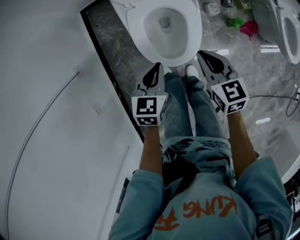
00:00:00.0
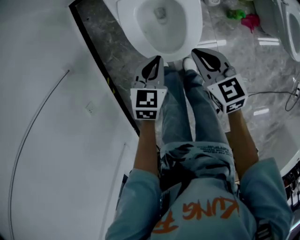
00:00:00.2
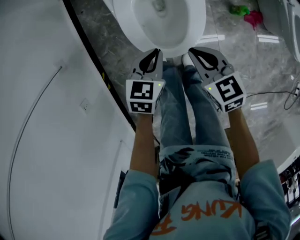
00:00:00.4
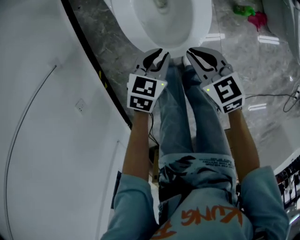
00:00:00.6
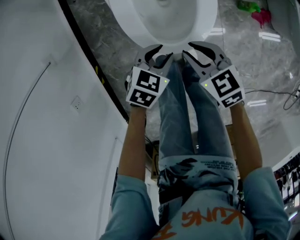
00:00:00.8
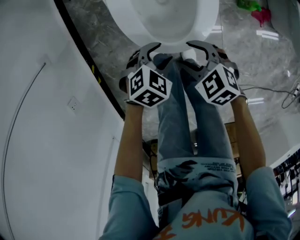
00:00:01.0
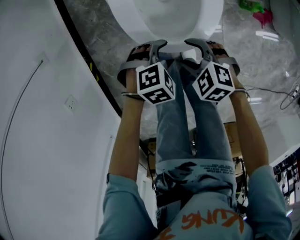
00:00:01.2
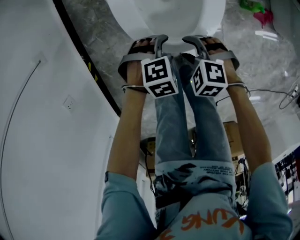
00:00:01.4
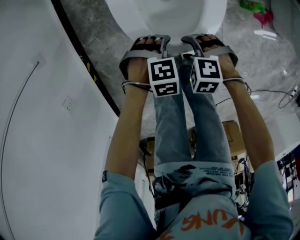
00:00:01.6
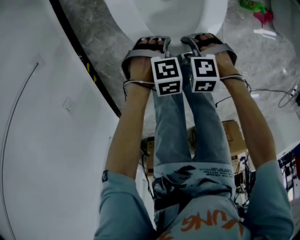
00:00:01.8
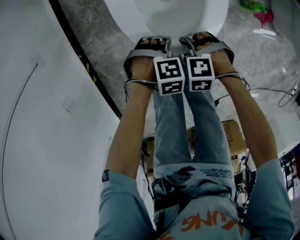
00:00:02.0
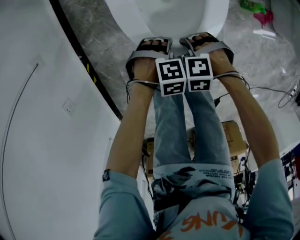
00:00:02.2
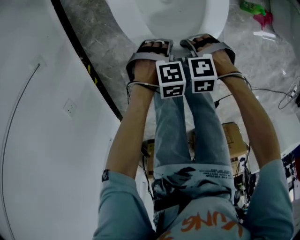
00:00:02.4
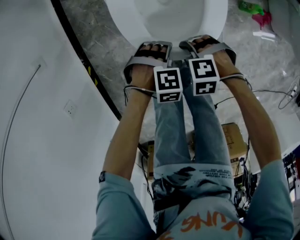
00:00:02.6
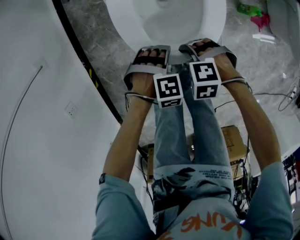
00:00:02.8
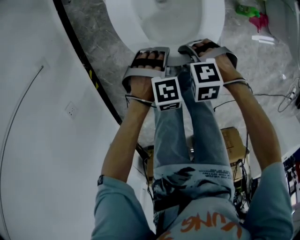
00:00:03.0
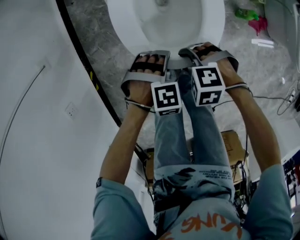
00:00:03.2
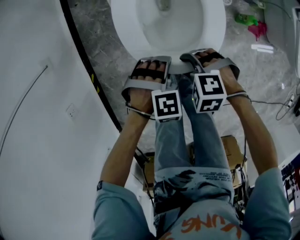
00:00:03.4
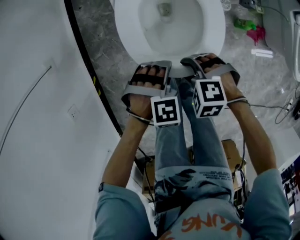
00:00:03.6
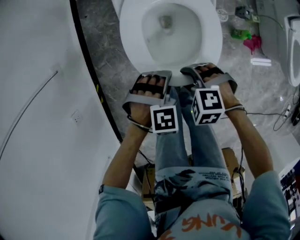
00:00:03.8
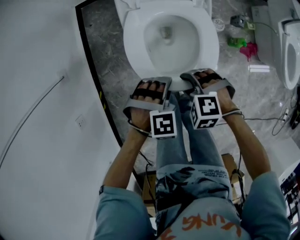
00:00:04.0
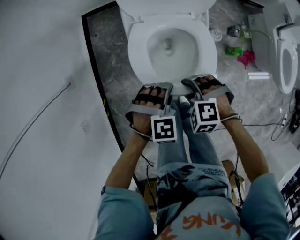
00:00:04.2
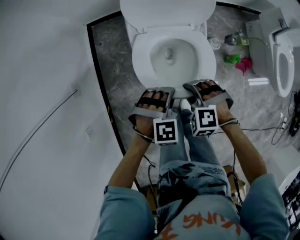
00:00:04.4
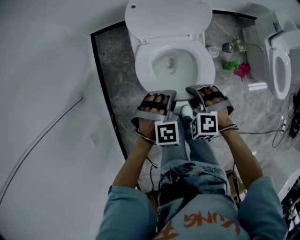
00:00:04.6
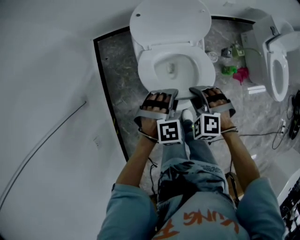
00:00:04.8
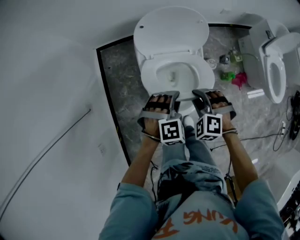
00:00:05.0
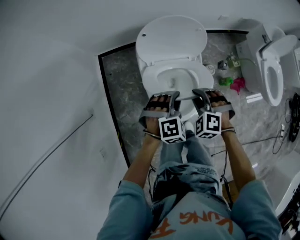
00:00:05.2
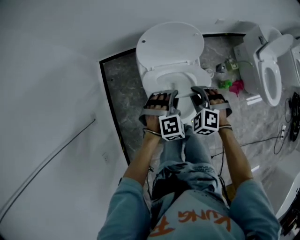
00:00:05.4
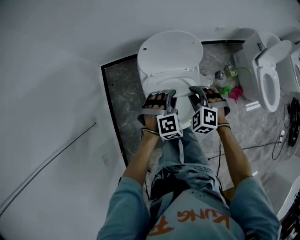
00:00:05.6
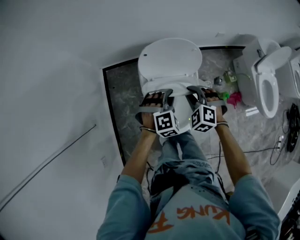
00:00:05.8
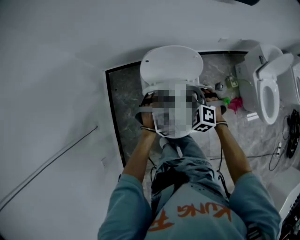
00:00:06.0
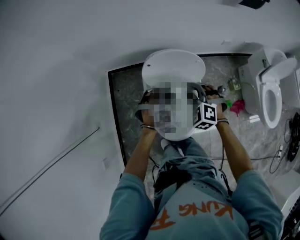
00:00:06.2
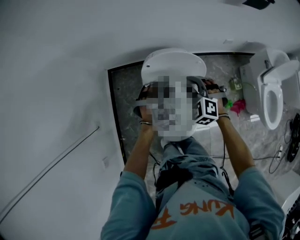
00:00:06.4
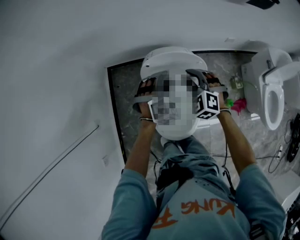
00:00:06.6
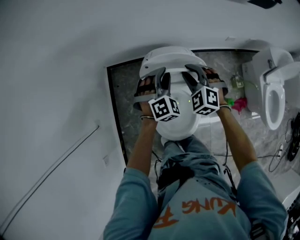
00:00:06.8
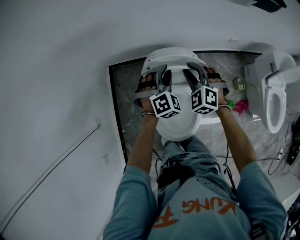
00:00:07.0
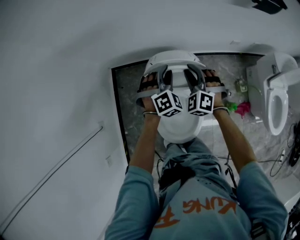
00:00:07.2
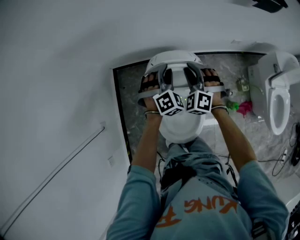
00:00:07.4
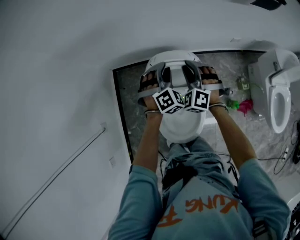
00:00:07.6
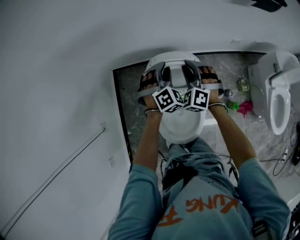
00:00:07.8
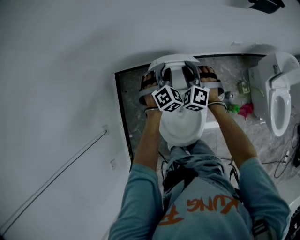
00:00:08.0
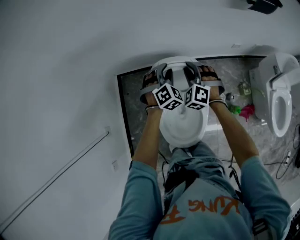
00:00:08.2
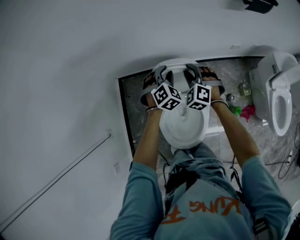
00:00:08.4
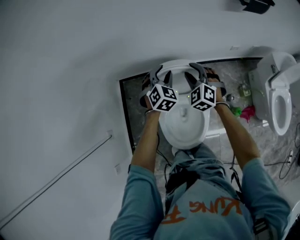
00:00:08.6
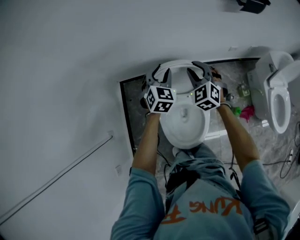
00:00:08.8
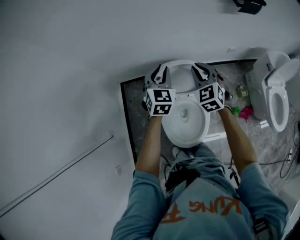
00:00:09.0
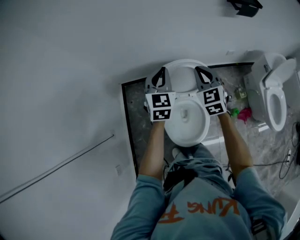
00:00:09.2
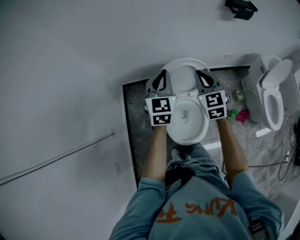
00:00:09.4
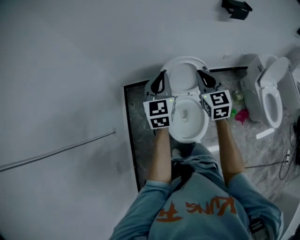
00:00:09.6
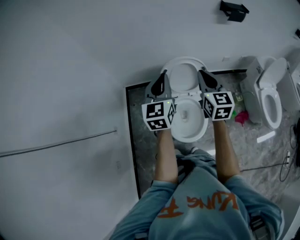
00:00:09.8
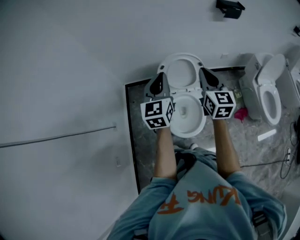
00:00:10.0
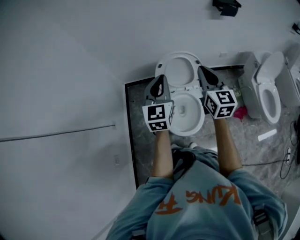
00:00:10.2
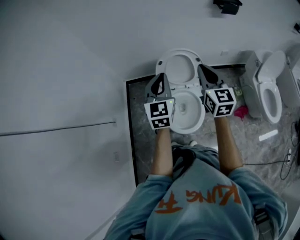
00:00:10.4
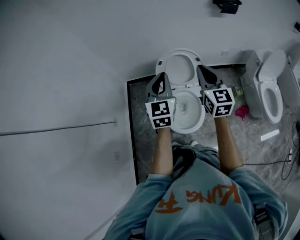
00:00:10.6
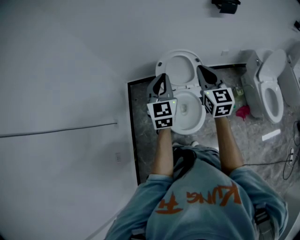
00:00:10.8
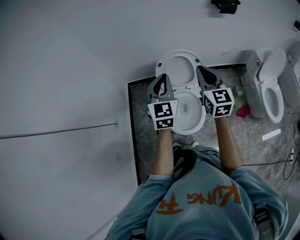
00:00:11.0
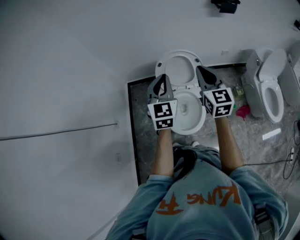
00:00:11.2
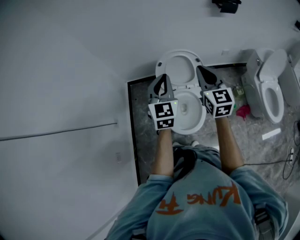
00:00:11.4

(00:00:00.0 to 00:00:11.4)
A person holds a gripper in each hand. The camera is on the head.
00:00:00.0 - 00:00:01.4: Both grippers travel together downward, some 30 cm. The right gripper points its fingers roughly 30 degrees further downward, and opens its fingers, while the left gripper changes its angle by some 70 degrees, and opens its fingers.
00:00:02.8 - 00:00:04.2: The two grippers go some 20 cm upward. The left gripper closes its fingers.
00:00:04.2 - 00:00:05.6: The right gripper goes approximately 25 cm upward and forward, and swivels about 30 degrees, while the left gripper shifts about 25 cm forward and upward, and swivels roughly 30 degrees.
00:00:05.6 - 00:00:07.2: The two grippers go roughly 25 cm forward.
00:00:07.2 - 00:00:08.6: The left gripper rotates approximately 20 degrees.
00:00:08.6 - 00:00:10.0: Both grippers move backward and upward, roughly 35 cm. The right gripper twists roughly 50 degrees clockwise, seen from behind, and closes up, while the left gripper angles its fingers upward, by about 30 degrees, and closes up.
00:00:10.0 - 00:00:11.4: The left gripper moves roughly 5 cm.

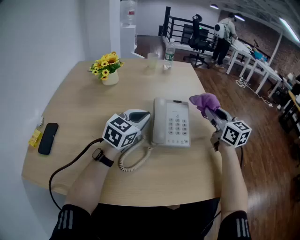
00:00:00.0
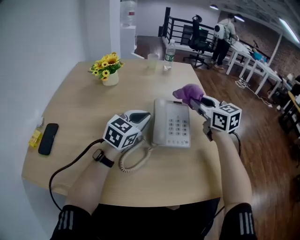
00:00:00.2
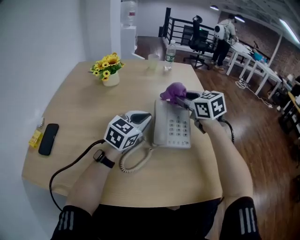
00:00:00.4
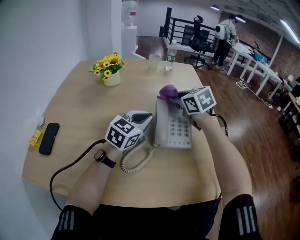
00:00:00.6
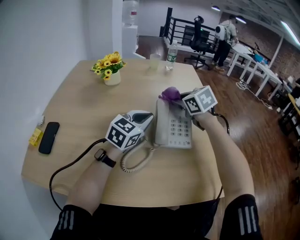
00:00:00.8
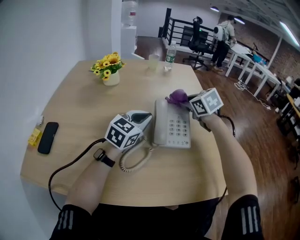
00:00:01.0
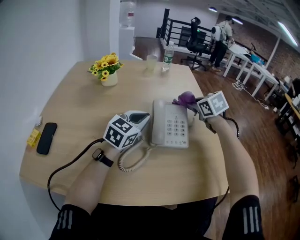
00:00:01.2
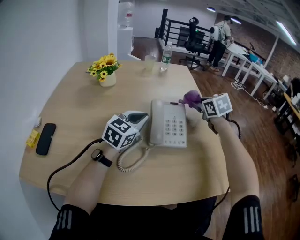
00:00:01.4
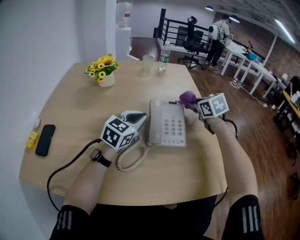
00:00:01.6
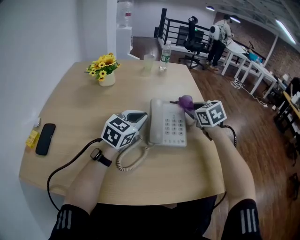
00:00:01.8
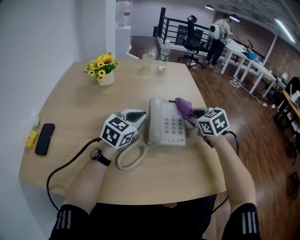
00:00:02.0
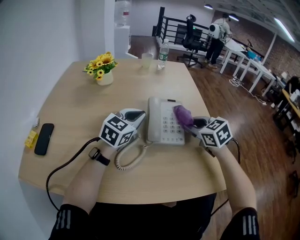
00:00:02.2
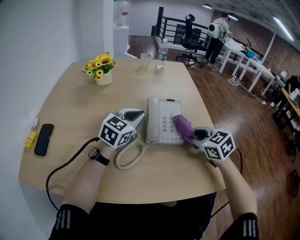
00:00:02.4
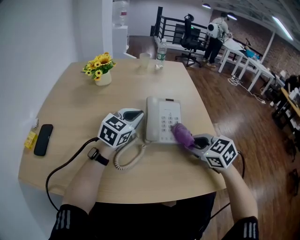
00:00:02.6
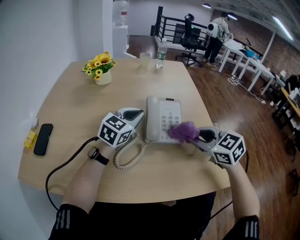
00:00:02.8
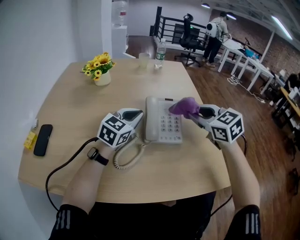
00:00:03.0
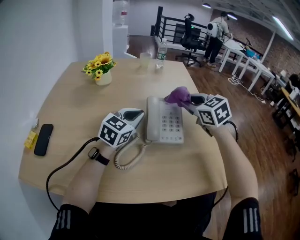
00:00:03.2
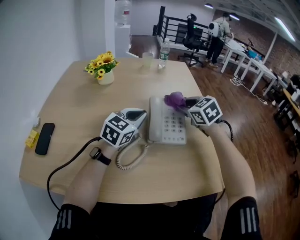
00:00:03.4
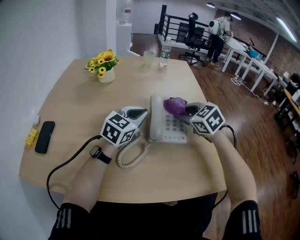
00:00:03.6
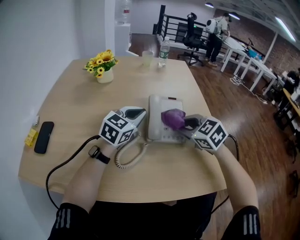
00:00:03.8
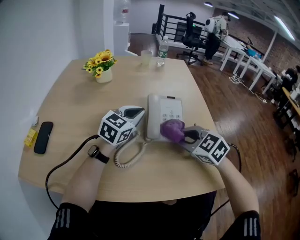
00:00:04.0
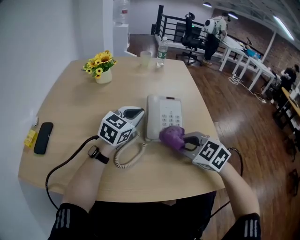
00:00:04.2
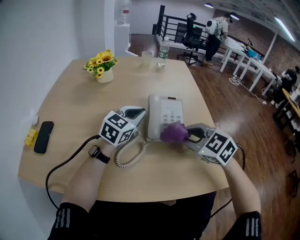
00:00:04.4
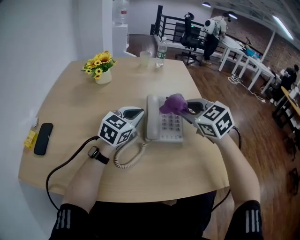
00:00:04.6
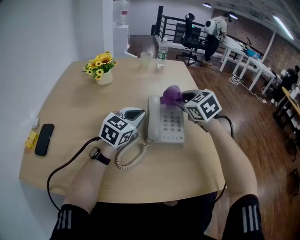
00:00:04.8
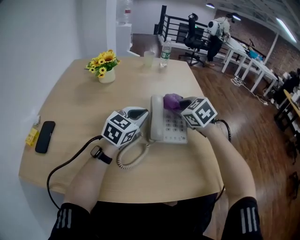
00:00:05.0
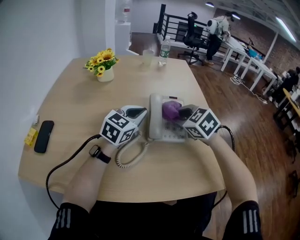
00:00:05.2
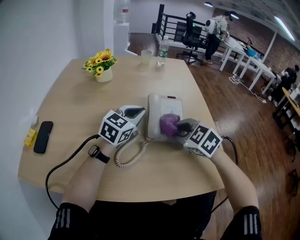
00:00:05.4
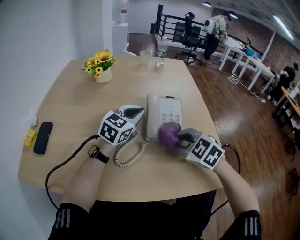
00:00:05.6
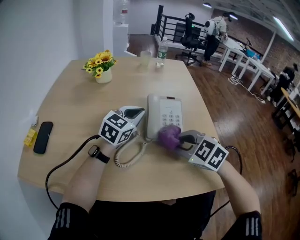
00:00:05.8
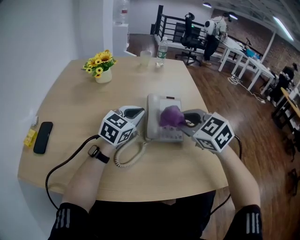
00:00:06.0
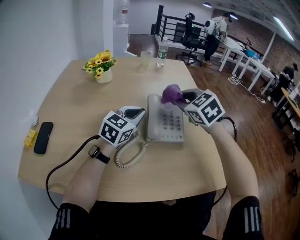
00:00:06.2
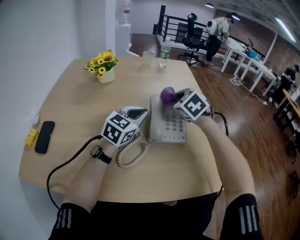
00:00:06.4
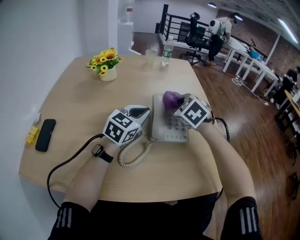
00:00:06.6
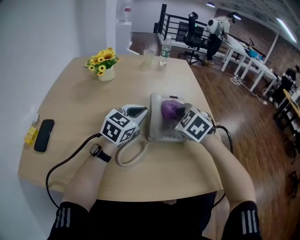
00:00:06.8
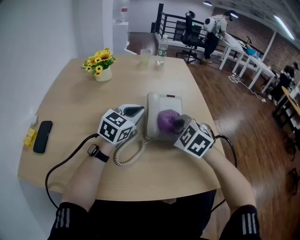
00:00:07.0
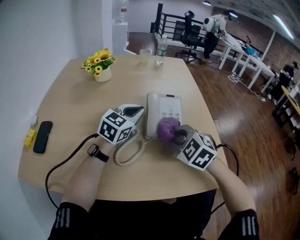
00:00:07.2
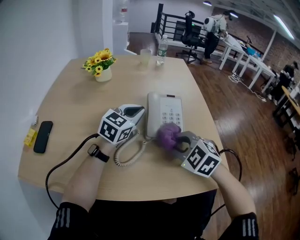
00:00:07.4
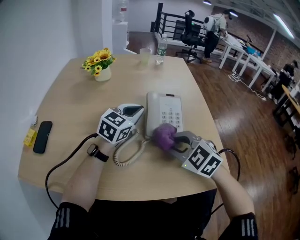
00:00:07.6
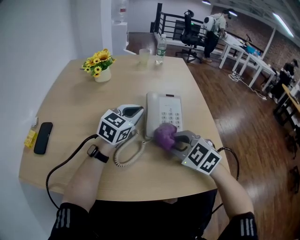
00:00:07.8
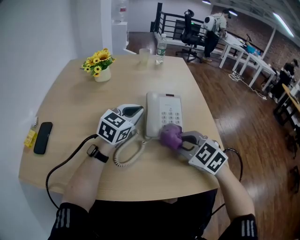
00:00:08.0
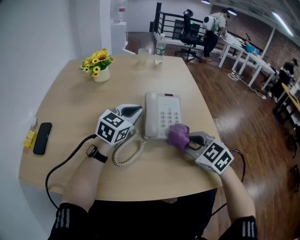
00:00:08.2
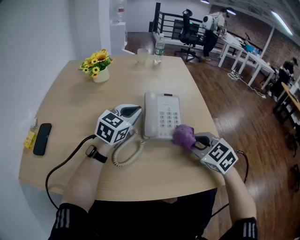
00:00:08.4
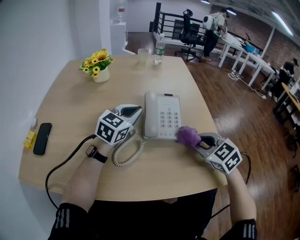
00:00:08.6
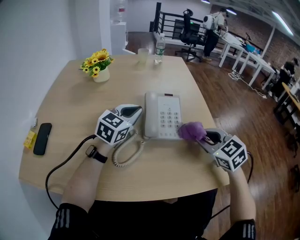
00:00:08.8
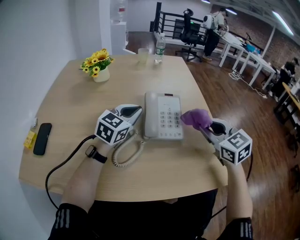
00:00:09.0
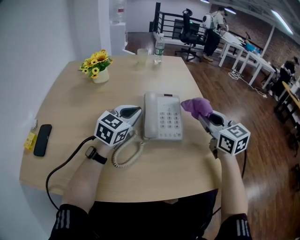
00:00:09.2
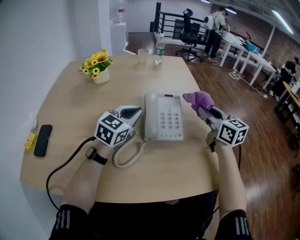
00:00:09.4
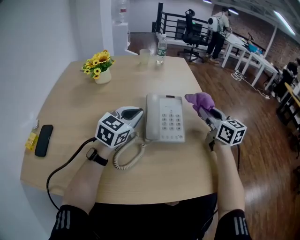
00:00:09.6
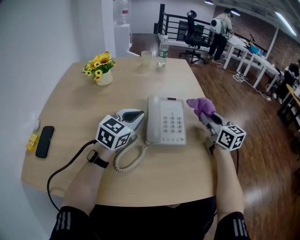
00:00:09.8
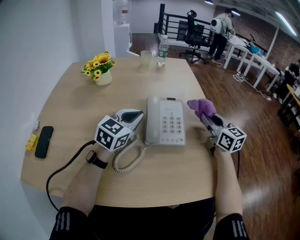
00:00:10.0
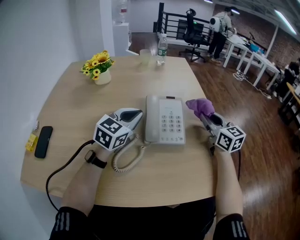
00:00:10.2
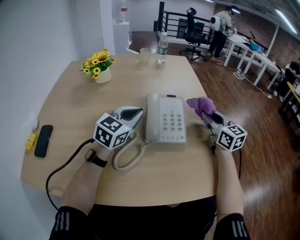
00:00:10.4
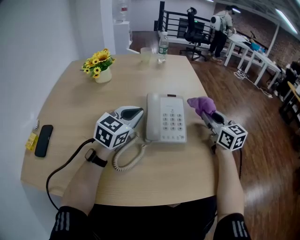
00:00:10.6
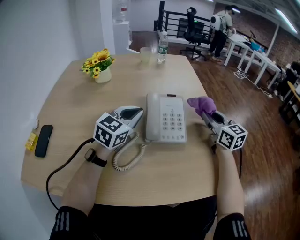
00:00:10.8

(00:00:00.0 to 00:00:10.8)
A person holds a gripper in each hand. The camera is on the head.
00:00:00.0 - 00:00:01.6: The right gripper is displaced forward by roughly 5 cm, reaches approximately 15 cm to the left, then returns, and angles its fingers downward, by approximately 30 degrees.
00:00:01.6 - 00:00:03.0: The right gripper is displaced backward by about 10 cm.
00:00:03.0 - 00:00:04.6: The right gripper goes forward and backward, some 20 cm each way, reversing 2 times.
00:00:04.6 - 00:00:06.2: The right gripper goes forward and backward, about 20 cm each way, reversing 2 times.
00:00:06.2 - 00:00:07.8: The right gripper travels backward and downward by some 20 cm.
00:00:07.8 - 00:00:09.2: The right gripper travels to the right, upward and forward by roughly 20 cm, and turns by some 40 degrees.
00:00:09.2 - 00:00:10.8: The right gripper goes about 5 cm forward.

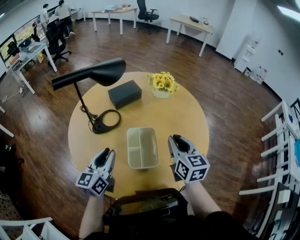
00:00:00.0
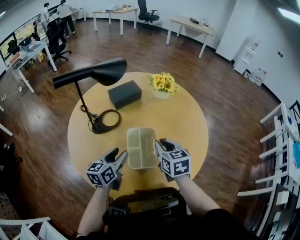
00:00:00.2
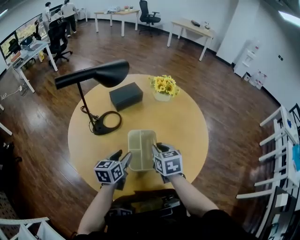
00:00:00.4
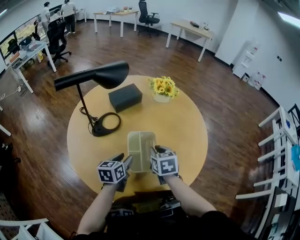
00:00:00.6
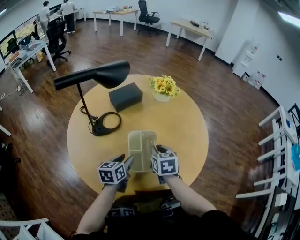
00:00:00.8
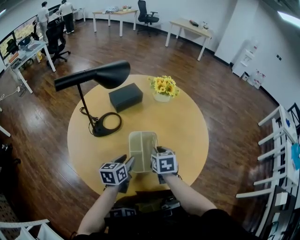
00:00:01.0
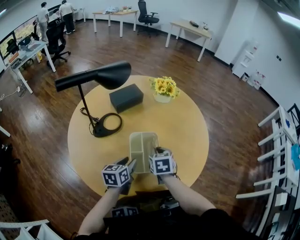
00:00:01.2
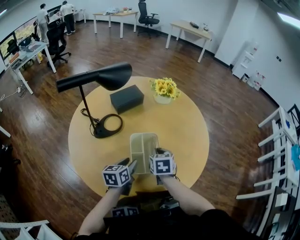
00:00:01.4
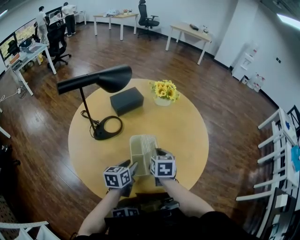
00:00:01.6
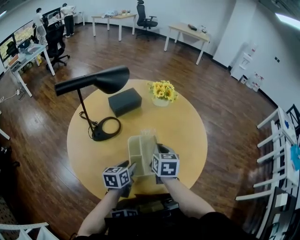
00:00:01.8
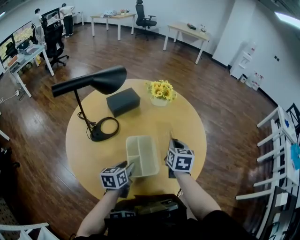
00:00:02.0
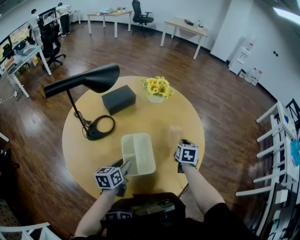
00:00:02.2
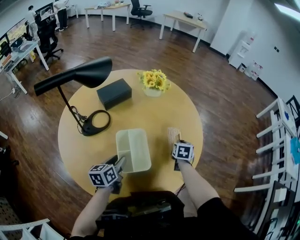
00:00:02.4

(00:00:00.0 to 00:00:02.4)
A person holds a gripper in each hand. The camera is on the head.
00:00:00.0 - 00:00:01.2: The right gripper heads downward and to the left, covering approximately 15 cm, and rotates roughly 30 degrees, while the left gripper travels downward and to the right by some 15 cm, and rotates some 30 degrees.
00:00:01.2 - 00:00:02.4: The right gripper moves to the right and forward, some 20 cm, and rotates about 20 degrees.
